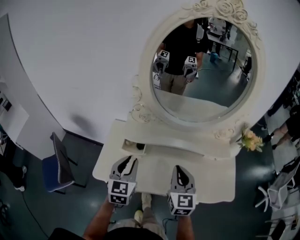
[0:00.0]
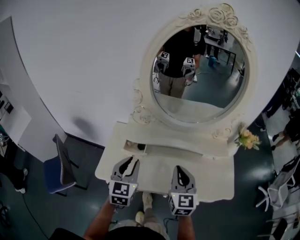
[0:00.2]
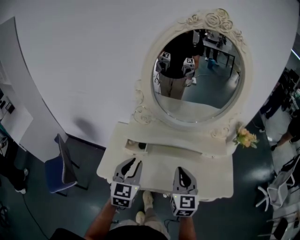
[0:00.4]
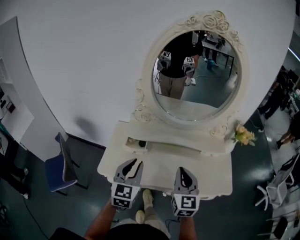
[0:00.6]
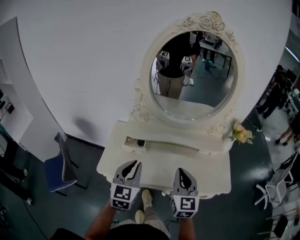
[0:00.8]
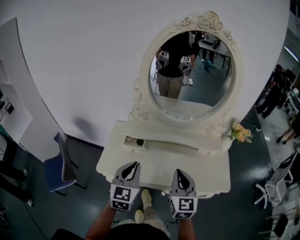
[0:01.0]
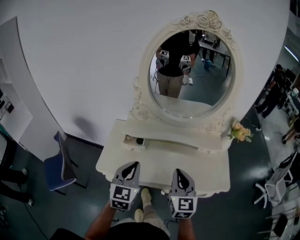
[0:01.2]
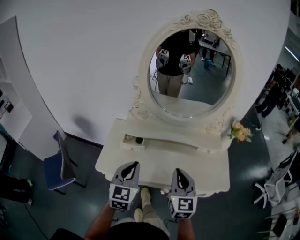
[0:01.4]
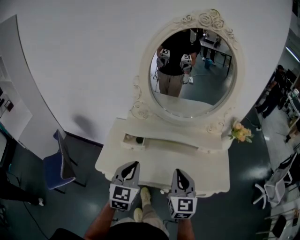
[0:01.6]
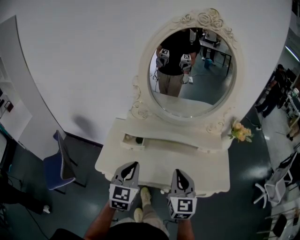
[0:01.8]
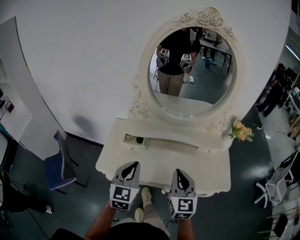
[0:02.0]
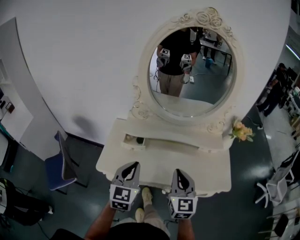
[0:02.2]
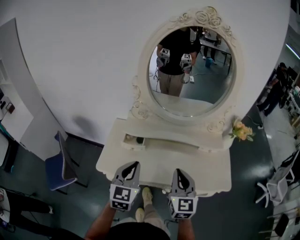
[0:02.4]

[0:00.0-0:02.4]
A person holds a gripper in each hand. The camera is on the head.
0:00.0 to 0:01.2: The right gripper shifts approximately 10 cm backward, while the left gripper travels backward and upward by about 10 cm.
0:01.2 to 0:02.4: Both grippers stay put.

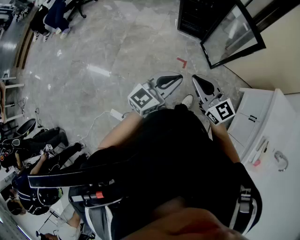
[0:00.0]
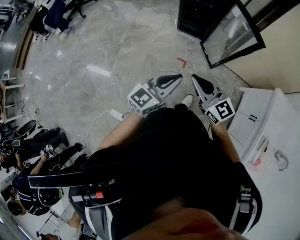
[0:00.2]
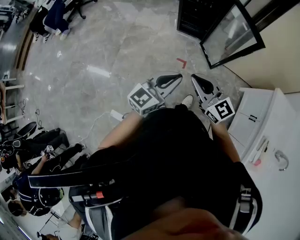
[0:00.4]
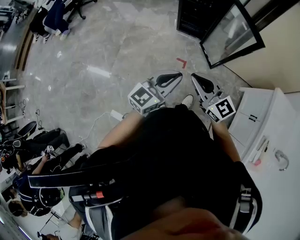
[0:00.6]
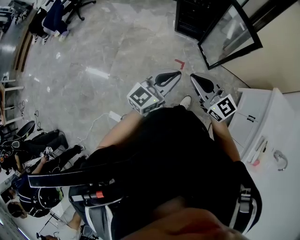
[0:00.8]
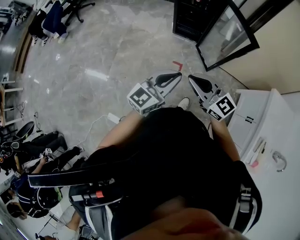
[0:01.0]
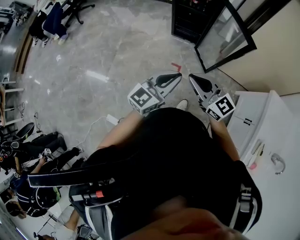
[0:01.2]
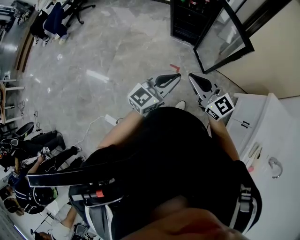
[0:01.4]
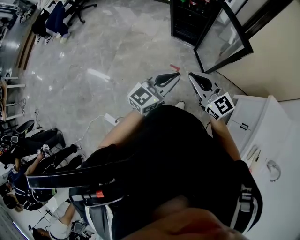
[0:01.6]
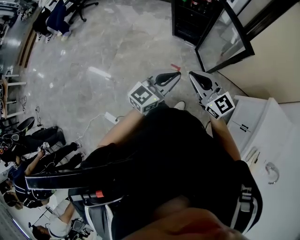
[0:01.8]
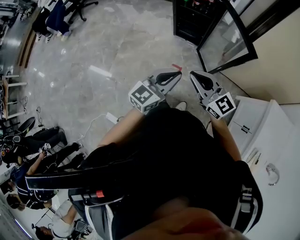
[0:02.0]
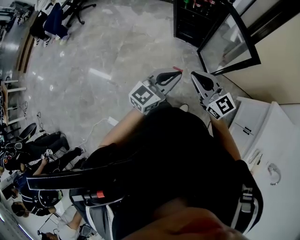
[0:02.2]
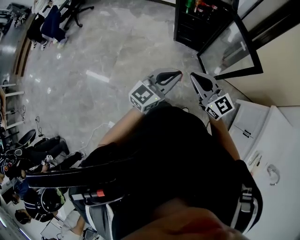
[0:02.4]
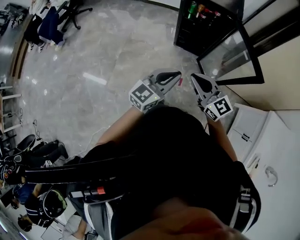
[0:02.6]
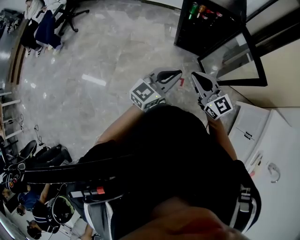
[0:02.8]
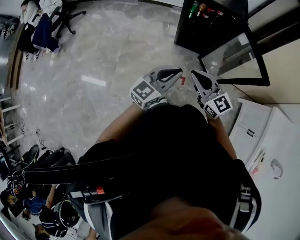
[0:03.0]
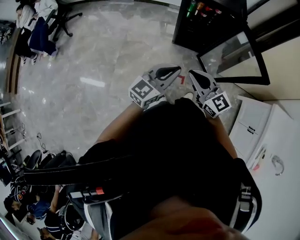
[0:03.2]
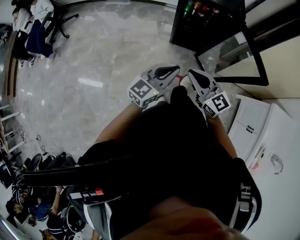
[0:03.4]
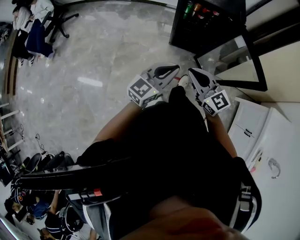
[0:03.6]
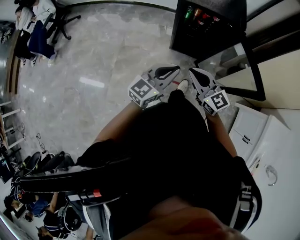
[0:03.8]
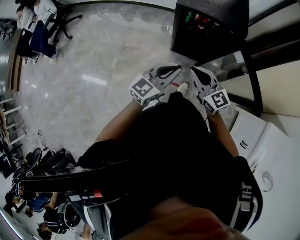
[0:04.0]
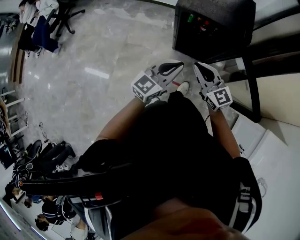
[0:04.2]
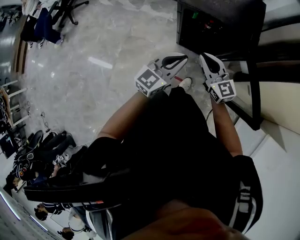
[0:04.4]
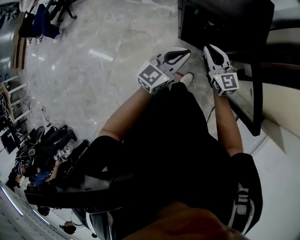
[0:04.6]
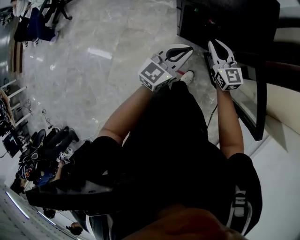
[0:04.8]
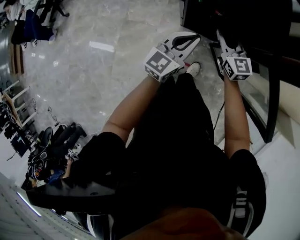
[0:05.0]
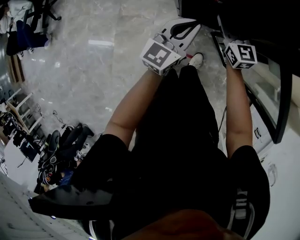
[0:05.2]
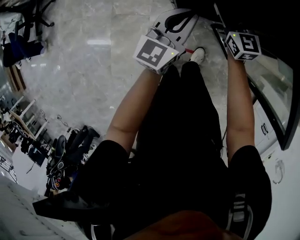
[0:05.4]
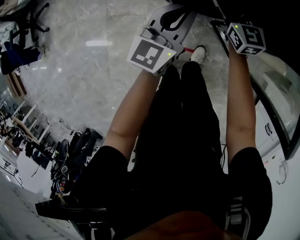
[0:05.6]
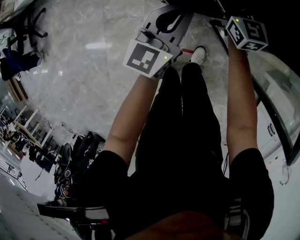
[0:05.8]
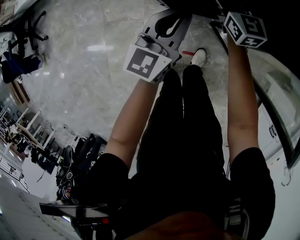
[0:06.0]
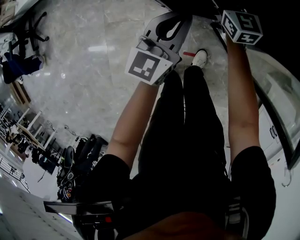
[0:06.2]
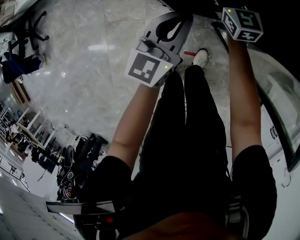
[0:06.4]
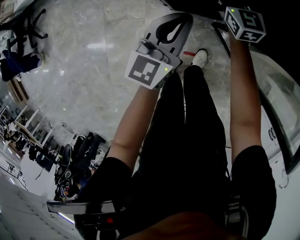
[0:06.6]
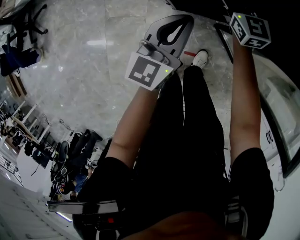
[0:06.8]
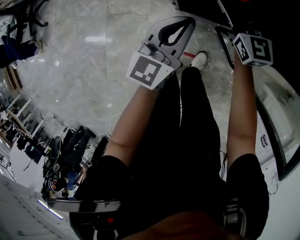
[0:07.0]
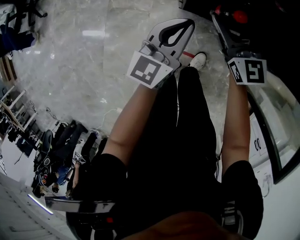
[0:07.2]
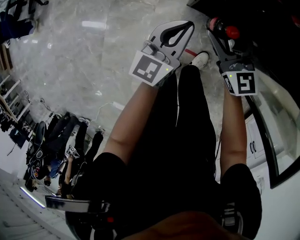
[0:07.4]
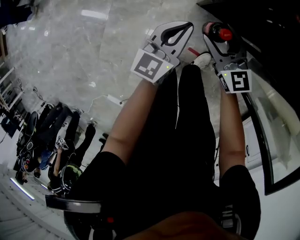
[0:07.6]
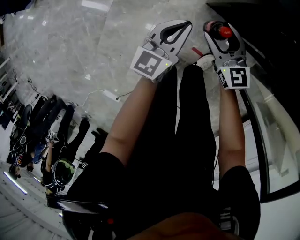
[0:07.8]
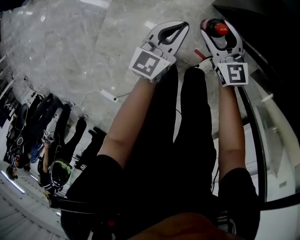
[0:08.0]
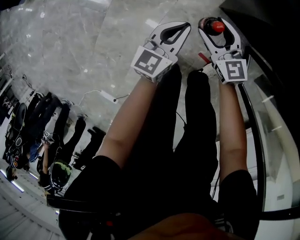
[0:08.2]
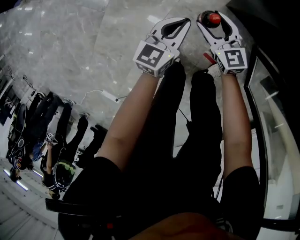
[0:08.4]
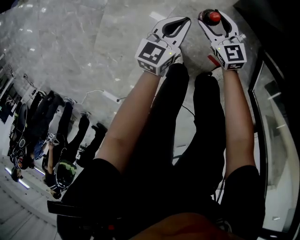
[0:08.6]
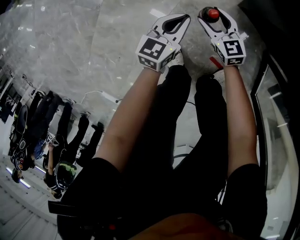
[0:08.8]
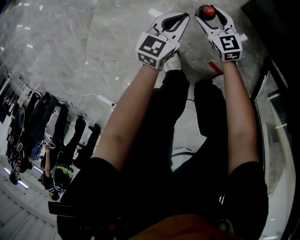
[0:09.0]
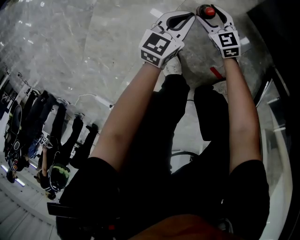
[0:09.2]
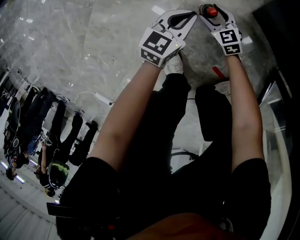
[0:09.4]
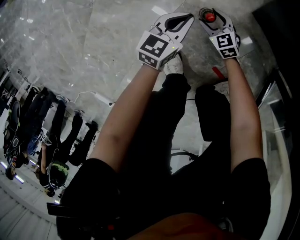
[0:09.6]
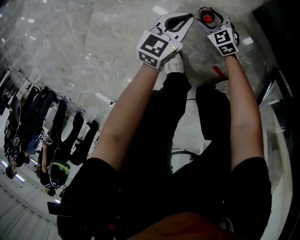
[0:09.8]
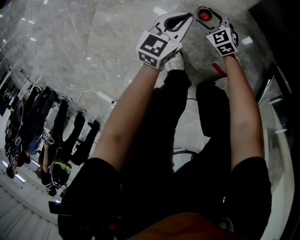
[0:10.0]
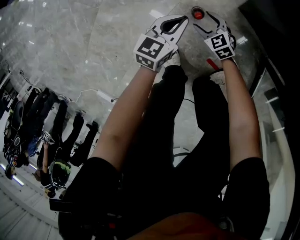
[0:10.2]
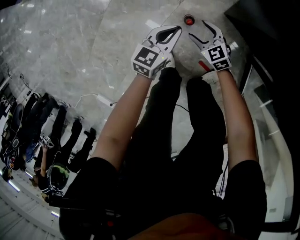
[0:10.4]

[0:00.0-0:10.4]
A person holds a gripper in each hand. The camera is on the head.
0:00.0 to 0:01.4: The right gripper travels to the right by about 5 cm; the left gripper goes roughly 10 cm to the right and forward.
0:01.4 to 0:03.0: Both grippers travel together forward and to the left, approximately 25 cm.
0:03.0 to 0:04.4: Both grippers travel together forward, approximately 25 cm.
0:04.4 to 0:06.0: The left gripper heads downward and forward, covering some 25 cm, while the right gripper travels forward and downward by some 35 cm, changes its angle by roughly 30 degrees, and opens its fingers.
0:06.0 to 0:07.4: The left gripper is displaced to the left, downward and backward by roughly 15 cm; the right gripper is displaced backward and to the left by some 20 cm, and changes its angle by approximately 20 degrees.
0:07.4 to 0:09.0: Both grippers travel together downward and to the left, about 60 cm. The right gripper rotates about 30 degrees. Meanwhile the left gripper changes its angle by approximately 30 degrees.
0:09.0 to 0:10.4: Both grippers travel together upward, roughly 15 cm.

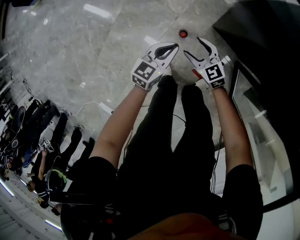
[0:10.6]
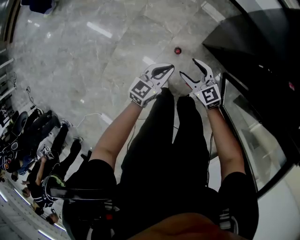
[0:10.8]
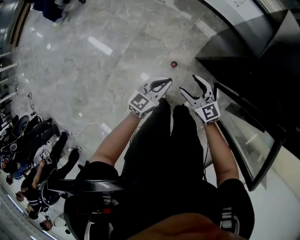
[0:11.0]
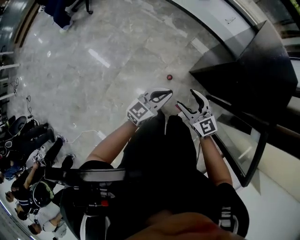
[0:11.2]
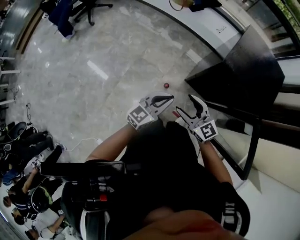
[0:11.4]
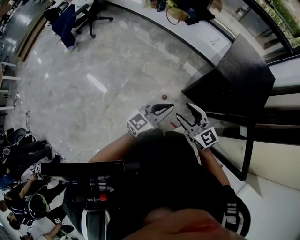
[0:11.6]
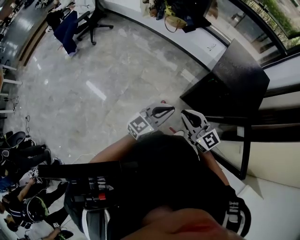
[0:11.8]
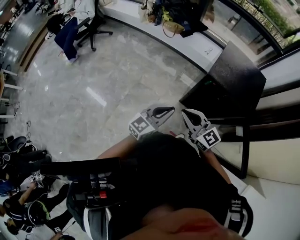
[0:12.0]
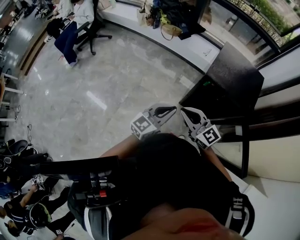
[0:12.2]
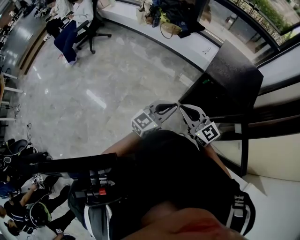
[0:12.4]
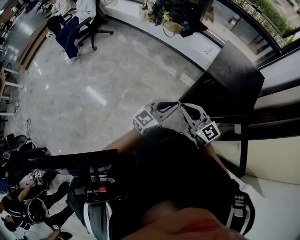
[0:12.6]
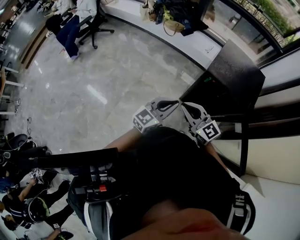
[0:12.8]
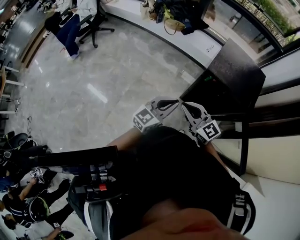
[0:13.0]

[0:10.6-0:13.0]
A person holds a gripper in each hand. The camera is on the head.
0:10.6 to 0:11.8: The two grippers go roughly 60 cm upward. The left gripper rotates roughly 30 degrees. The right gripper tips its fingers upward by some 30 degrees, and closes.
0:11.8 to 0:13.0: The grippers move only a little.

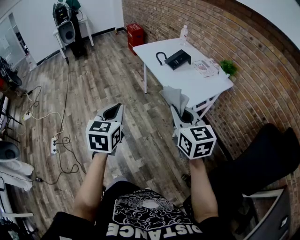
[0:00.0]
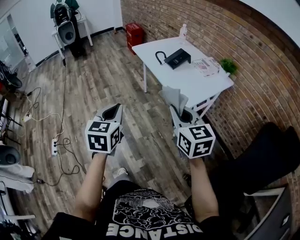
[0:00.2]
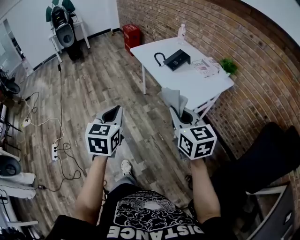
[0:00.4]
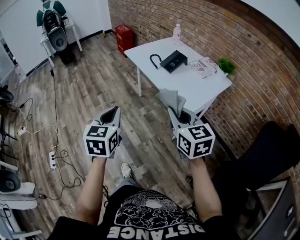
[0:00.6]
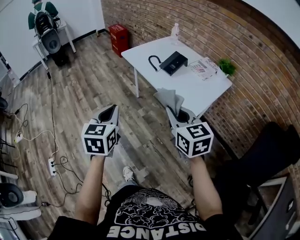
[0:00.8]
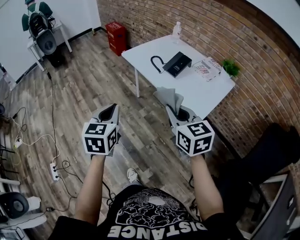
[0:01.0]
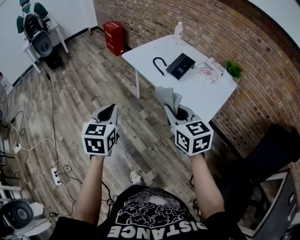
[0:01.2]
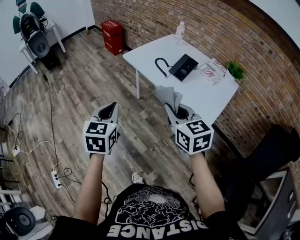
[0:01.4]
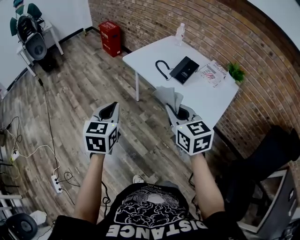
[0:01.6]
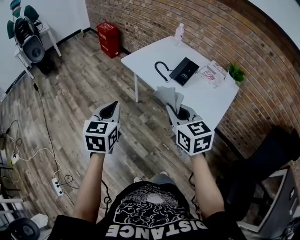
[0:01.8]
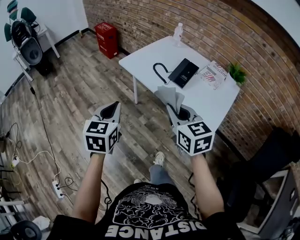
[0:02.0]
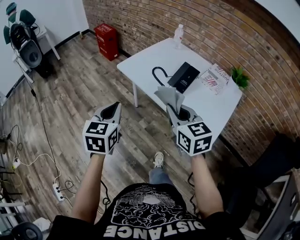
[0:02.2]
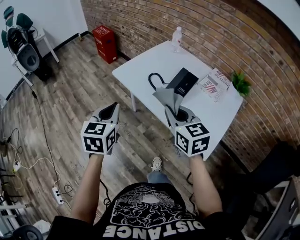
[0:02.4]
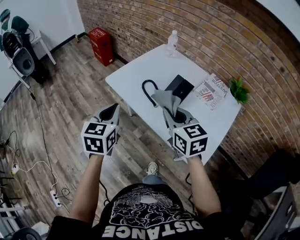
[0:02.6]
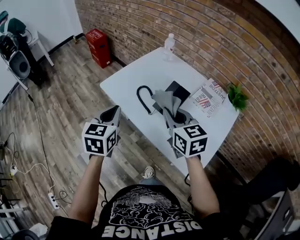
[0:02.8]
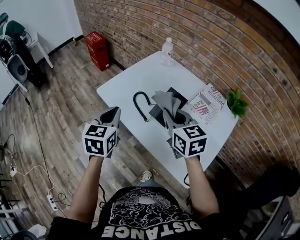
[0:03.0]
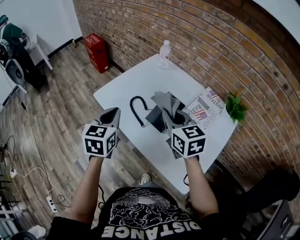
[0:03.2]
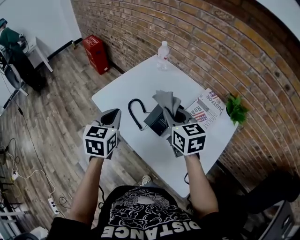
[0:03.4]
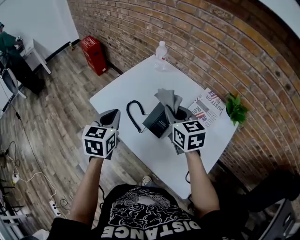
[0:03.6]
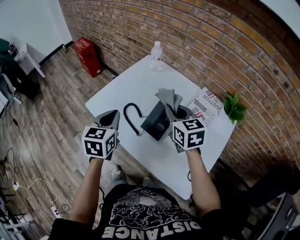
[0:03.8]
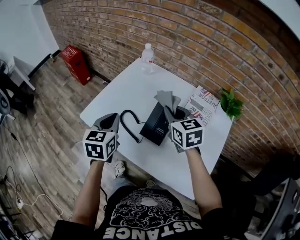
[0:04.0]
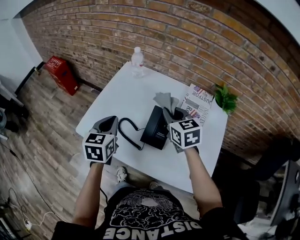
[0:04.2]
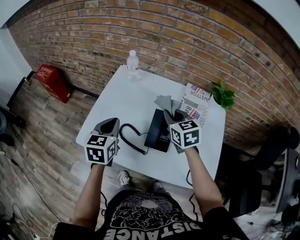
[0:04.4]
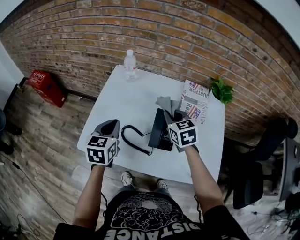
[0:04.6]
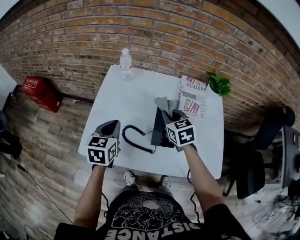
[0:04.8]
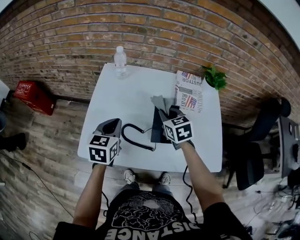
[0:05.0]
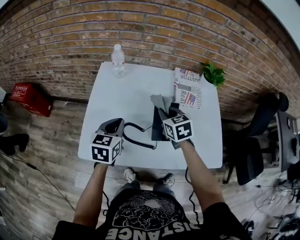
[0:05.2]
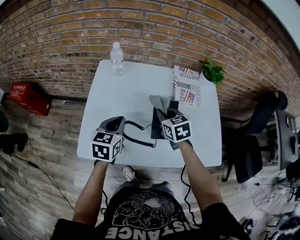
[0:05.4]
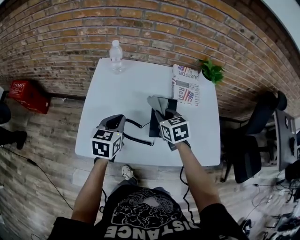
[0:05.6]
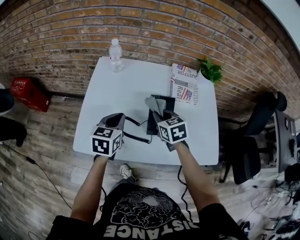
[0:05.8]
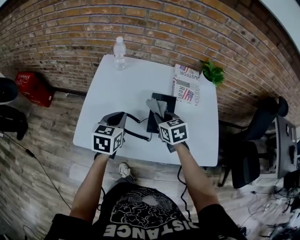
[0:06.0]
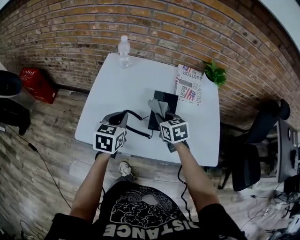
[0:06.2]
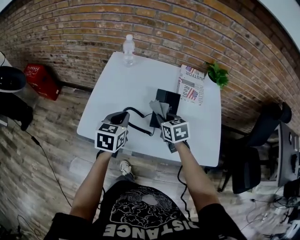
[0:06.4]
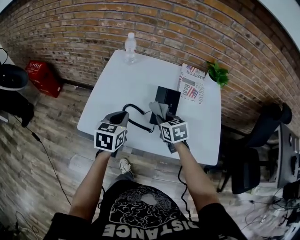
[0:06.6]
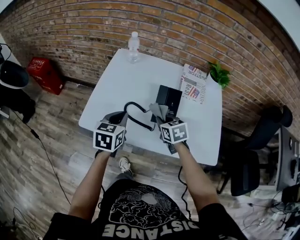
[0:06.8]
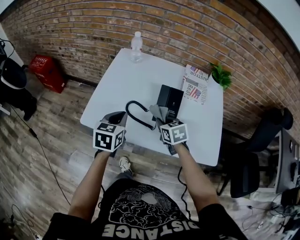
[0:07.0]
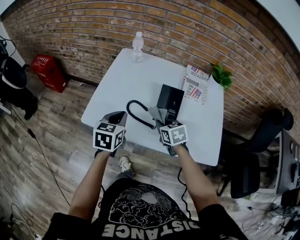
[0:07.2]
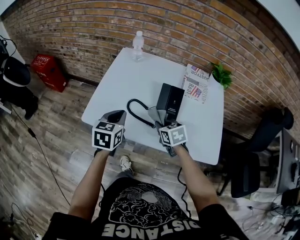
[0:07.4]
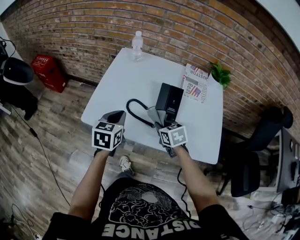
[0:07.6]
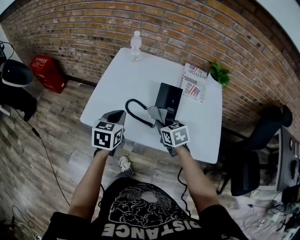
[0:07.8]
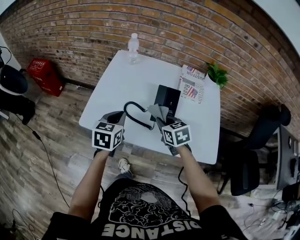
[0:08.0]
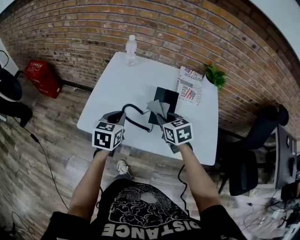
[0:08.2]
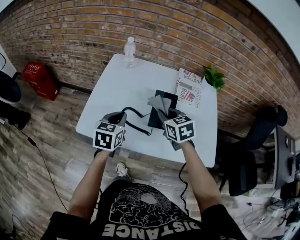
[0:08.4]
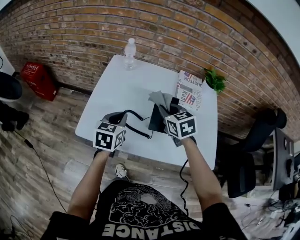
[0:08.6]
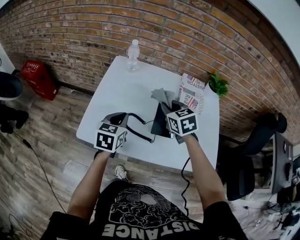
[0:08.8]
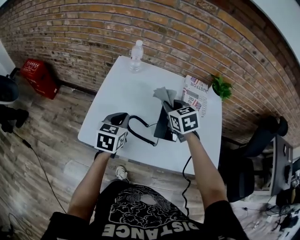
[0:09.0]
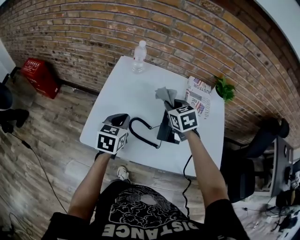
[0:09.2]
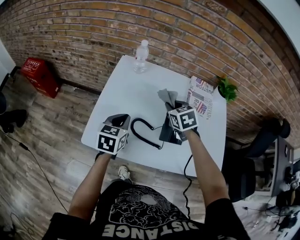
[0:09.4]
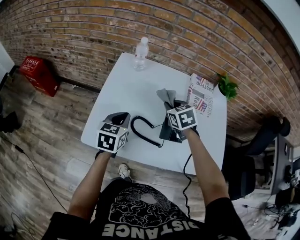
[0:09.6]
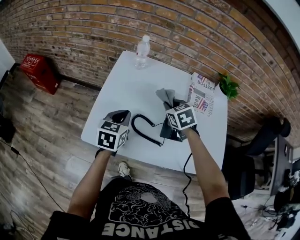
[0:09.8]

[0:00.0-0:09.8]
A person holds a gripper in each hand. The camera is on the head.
0:00.0 to 0:01.4: The grippers both shift forward and to the left by roughly 30 cm.
0:01.4 to 0:02.8: The grippers both shift forward and to the right by approximately 30 cm.
0:02.8 to 0:04.2: The left gripper shifts approximately 20 cm forward; the right gripper goes some 20 cm forward and to the right, and changes its angle by approximately 20 degrees.
0:04.2 to 0:05.6: The left gripper travels downward by some 5 cm, and turns by about 30 degrees, while the right gripper heads downward, covering some 10 cm, and rotates some 20 degrees.
0:05.6 to 0:07.0: Both grippers travel together backward, roughly 10 cm.
0:07.0 to 0:08.4: The right gripper moves upward, some 10 cm.
0:08.4 to 0:09.8: The right gripper travels forward by about 10 cm. Meanwhile the left gripper shifts approximately 5 cm forward.
